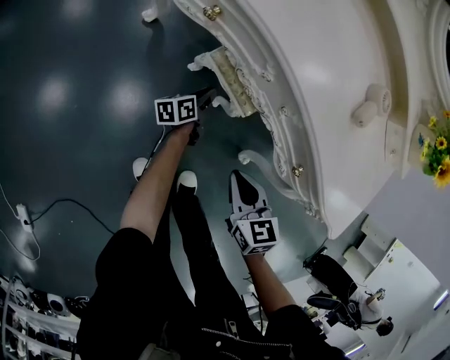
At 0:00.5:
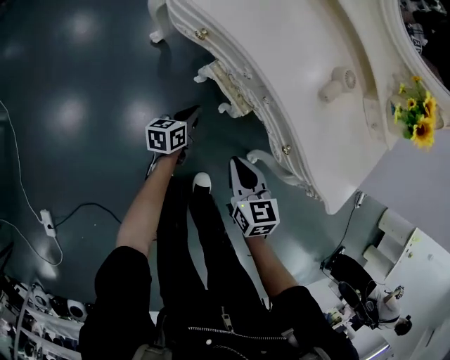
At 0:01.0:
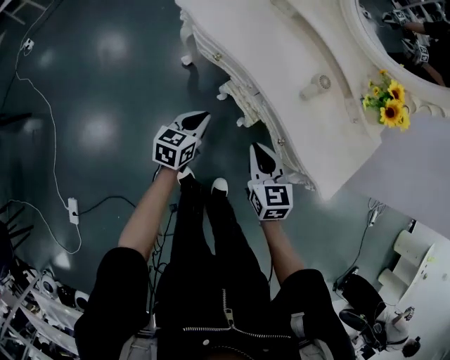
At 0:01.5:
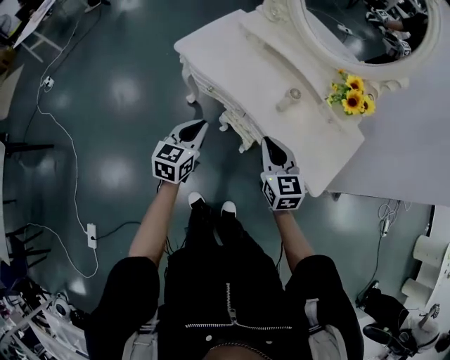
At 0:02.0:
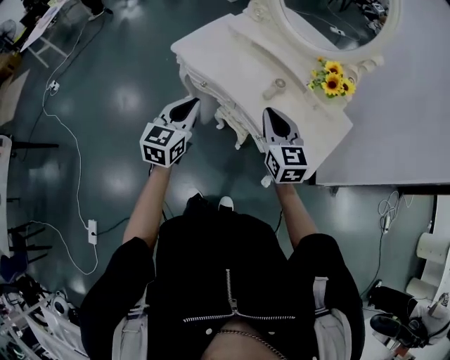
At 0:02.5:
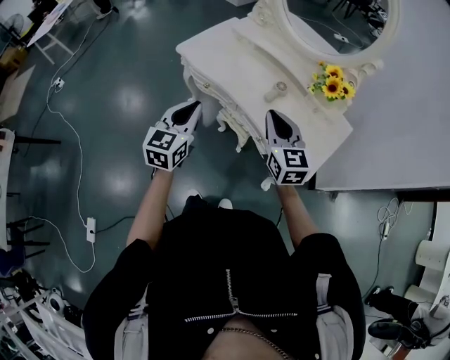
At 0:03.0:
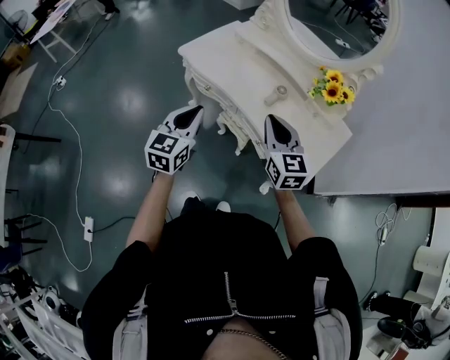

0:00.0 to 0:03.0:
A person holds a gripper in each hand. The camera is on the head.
0:00.0 to 0:01.5: The two grippers go roughly 50 cm upward. The left gripper rolls clockwise, seen from behind, by roughly 60 degrees; the right gripper turns by some 30 degrees.
0:01.5 to 0:03.0: The right gripper is displaced upward and to the right by some 10 cm. Meanwhile the left gripper goes approximately 15 cm upward and backward.

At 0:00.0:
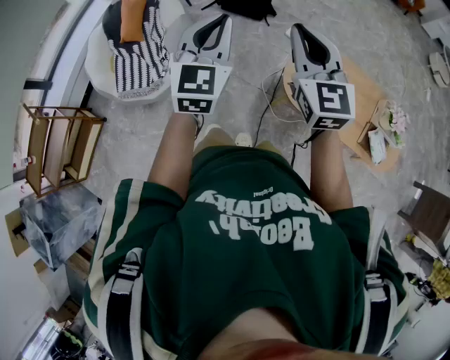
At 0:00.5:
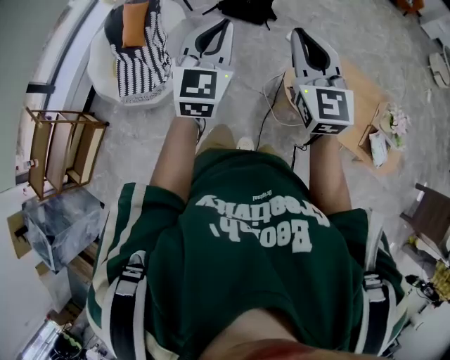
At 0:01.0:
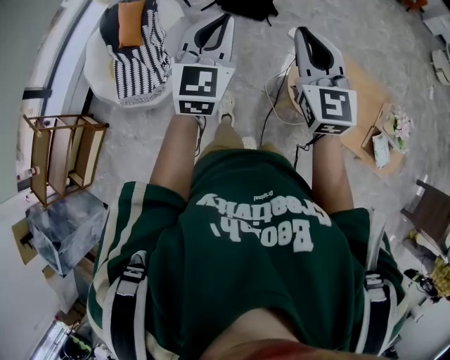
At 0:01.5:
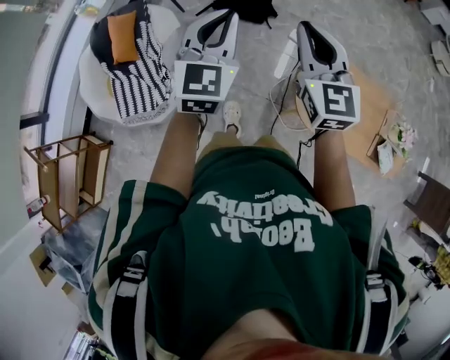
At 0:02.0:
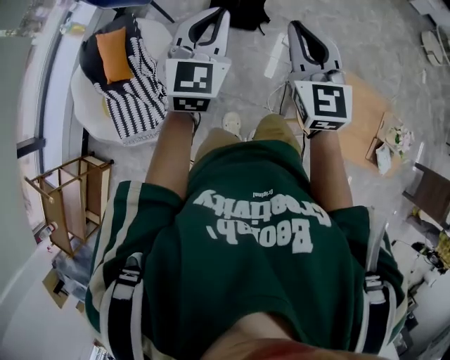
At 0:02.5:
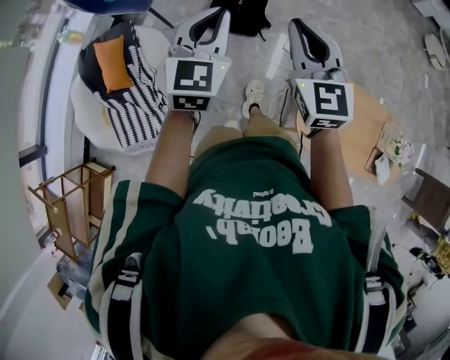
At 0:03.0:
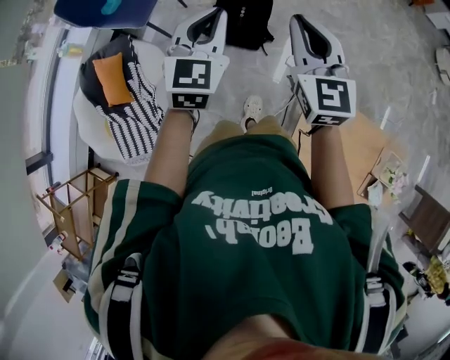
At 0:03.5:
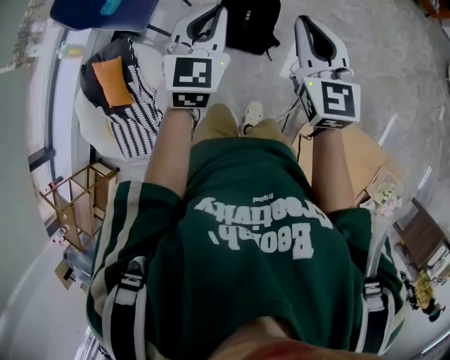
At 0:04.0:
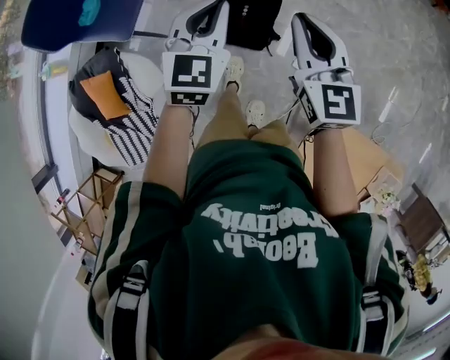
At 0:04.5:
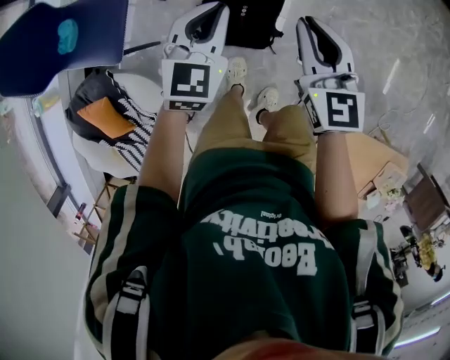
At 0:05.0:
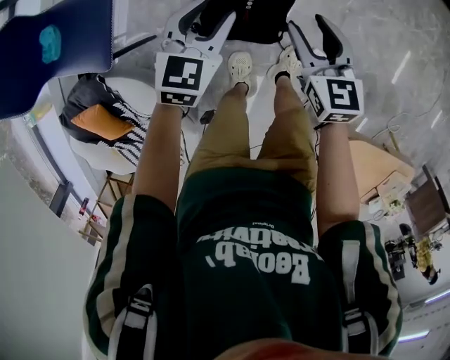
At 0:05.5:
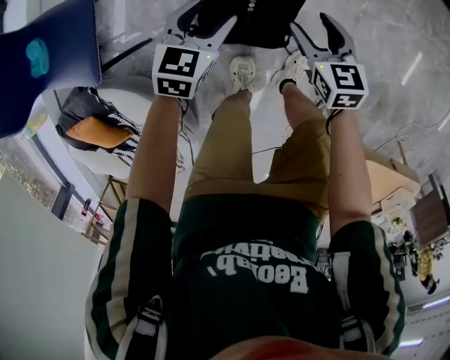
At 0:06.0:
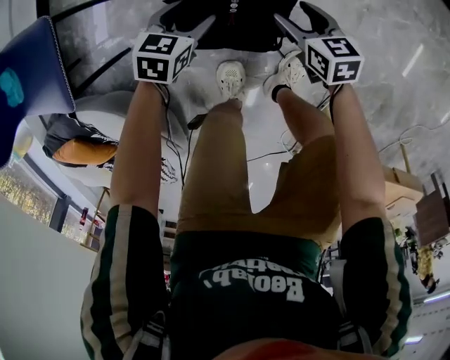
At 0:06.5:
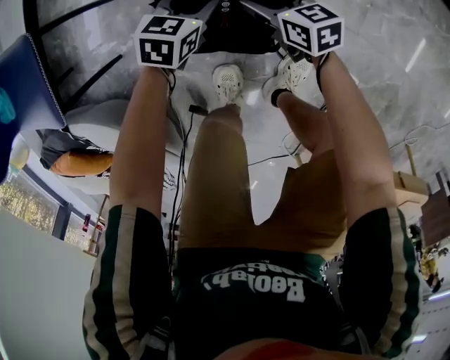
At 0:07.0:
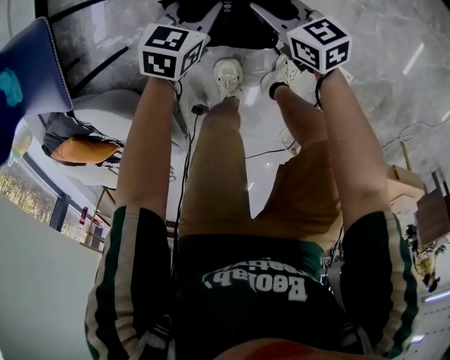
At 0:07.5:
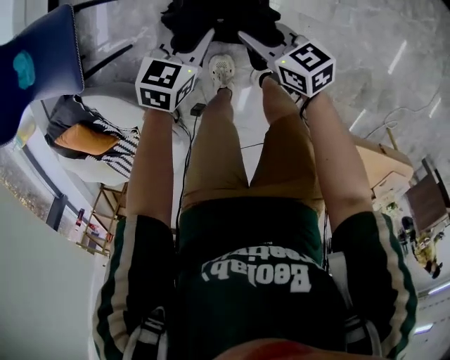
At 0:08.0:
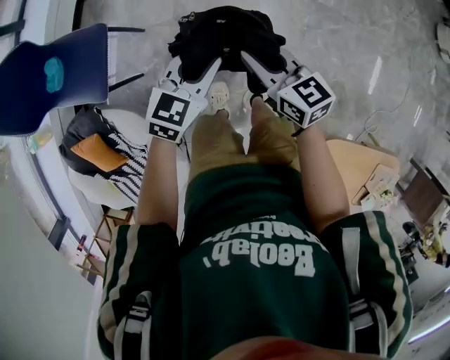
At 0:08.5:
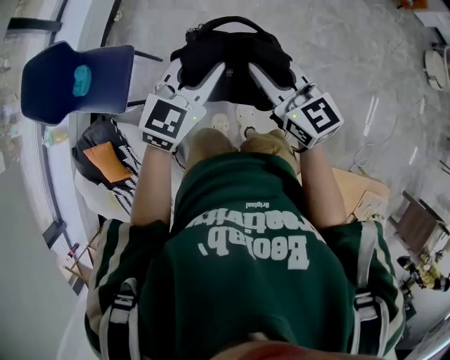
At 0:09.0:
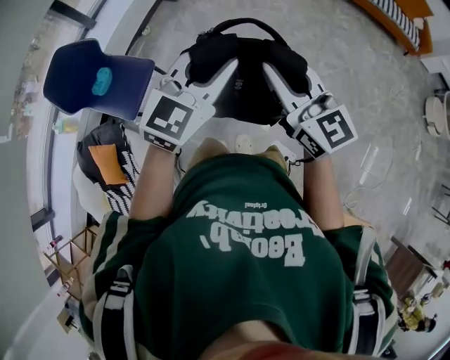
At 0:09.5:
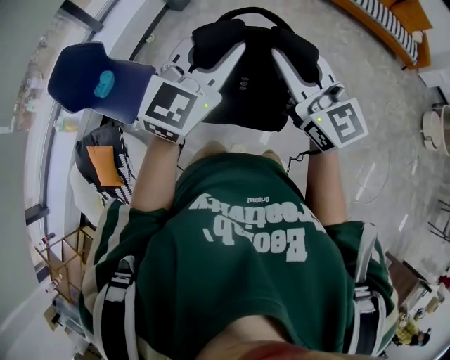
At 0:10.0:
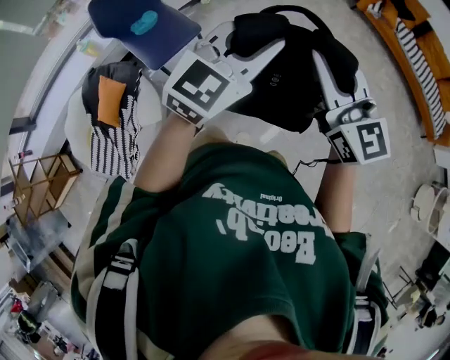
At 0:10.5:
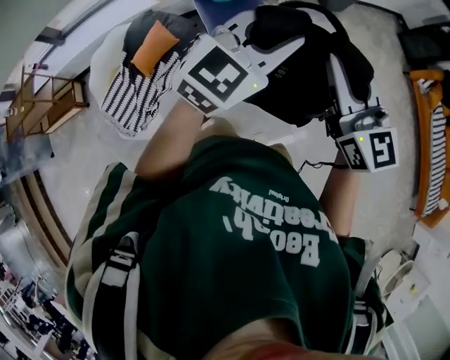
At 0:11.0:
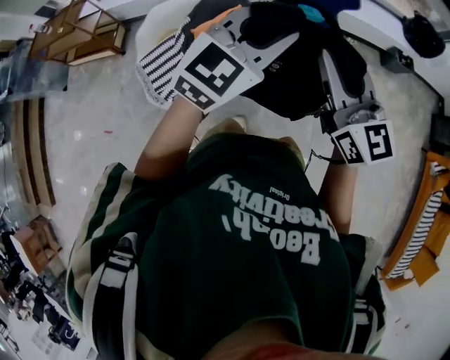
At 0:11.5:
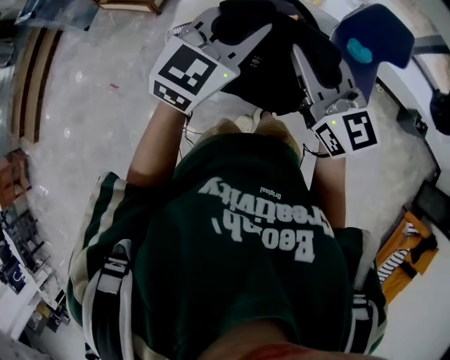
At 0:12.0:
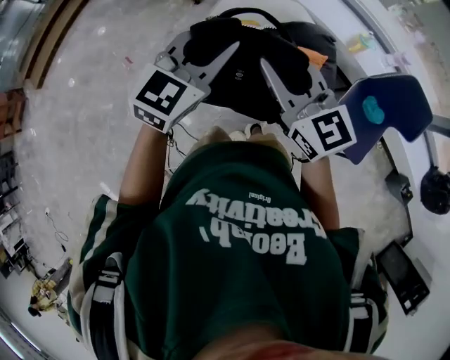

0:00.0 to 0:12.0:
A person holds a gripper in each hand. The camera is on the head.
0:00.0 to 0:02.0: The pair of grippers is taken forward, approximately 40 cm.
0:02.0 to 0:04.0: The two grippers travel together, forward, approximately 60 cm.
0:04.0 to 0:06.0: The grippers both shift downward and forward by roughly 80 cm. The right gripper changes its angle by some 40 degrees, and opens its fingers, while the left gripper points its fingers approximately 30 degrees further downward, and opens.
0:06.0 to 0:08.0: Both grippers travel together upward, about 50 cm. The left gripper swivels some 30 degrees, and closes. The right gripper swivels about 20 degrees, and closes its fingers.
0:08.0 to 0:10.0: Both grippers travel together upward, roughly 40 cm. The right gripper swivels roughly 50 degrees. The left gripper changes its angle by some 40 degrees.
0:10.0 to 0:12.0: The two grippers travel together, some 90 cm. The left gripper changes its angle by approximately 90 degrees. The right gripper turns by some 90 degrees.

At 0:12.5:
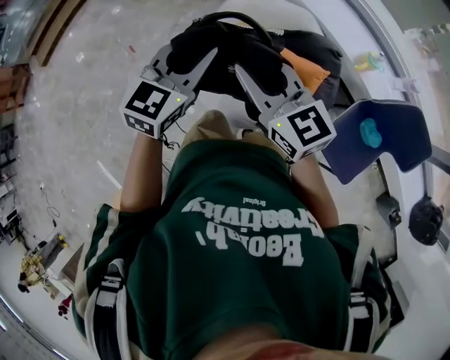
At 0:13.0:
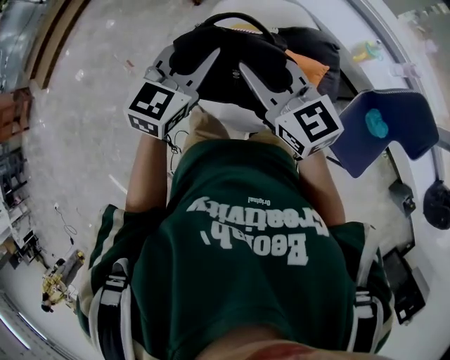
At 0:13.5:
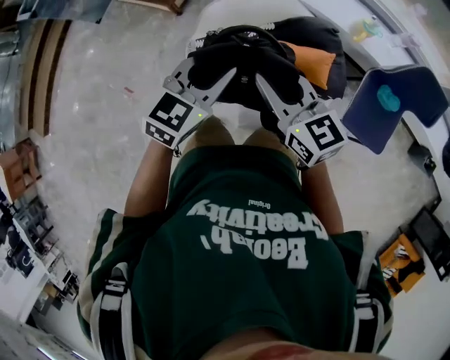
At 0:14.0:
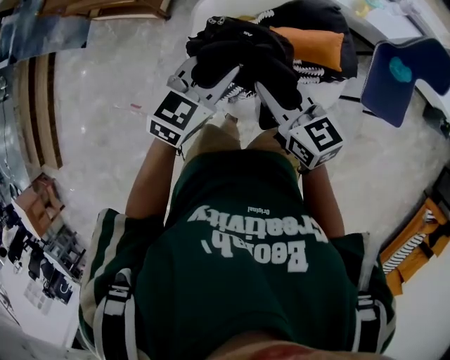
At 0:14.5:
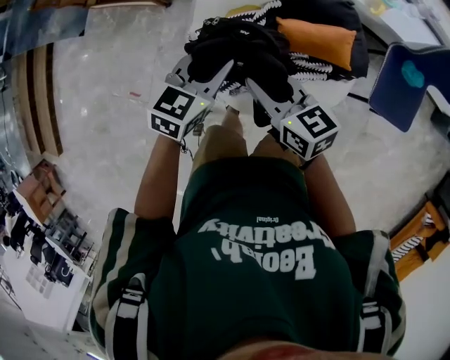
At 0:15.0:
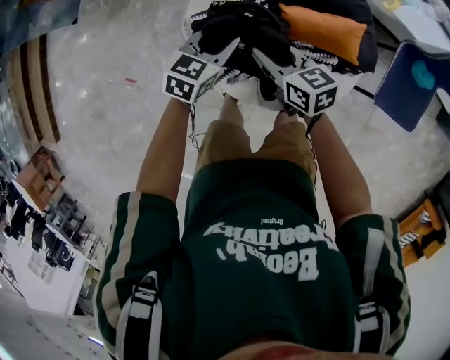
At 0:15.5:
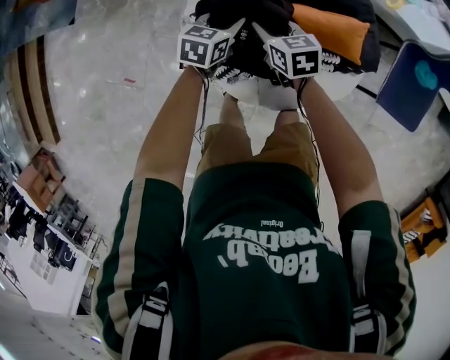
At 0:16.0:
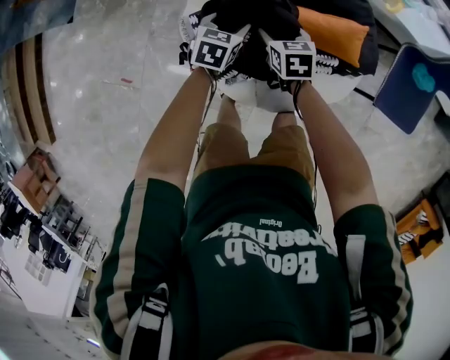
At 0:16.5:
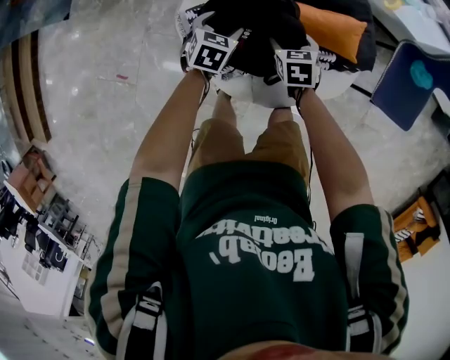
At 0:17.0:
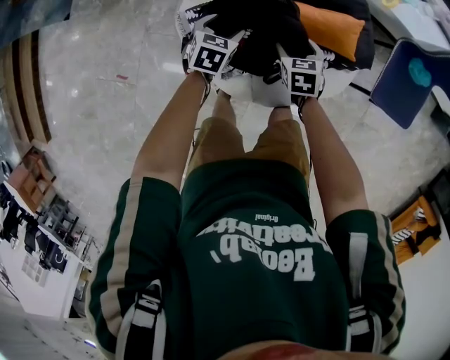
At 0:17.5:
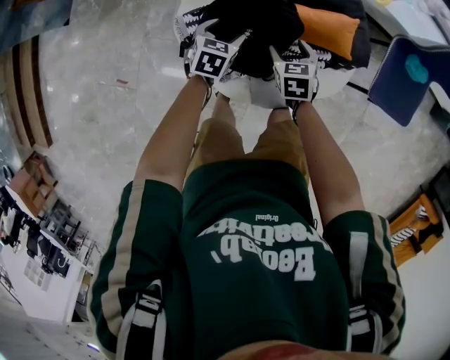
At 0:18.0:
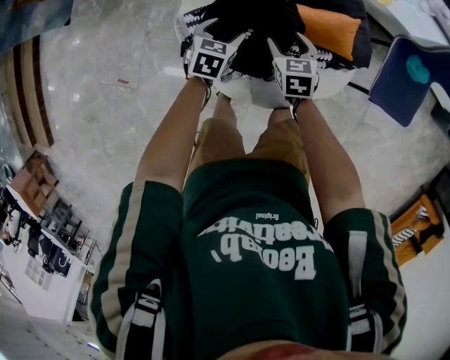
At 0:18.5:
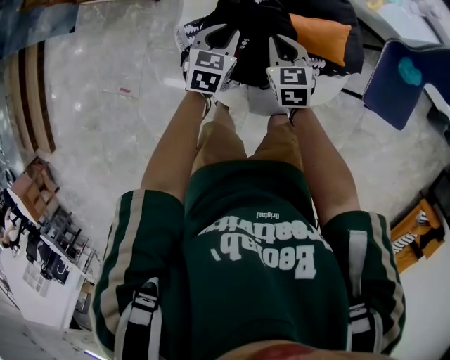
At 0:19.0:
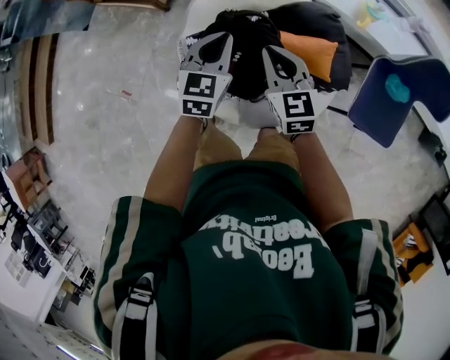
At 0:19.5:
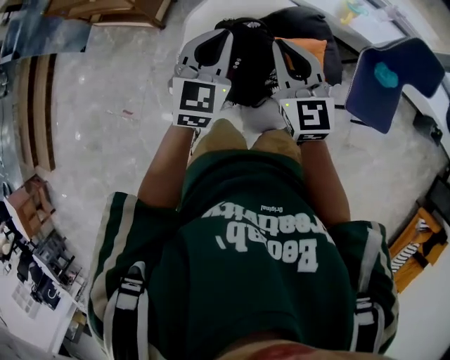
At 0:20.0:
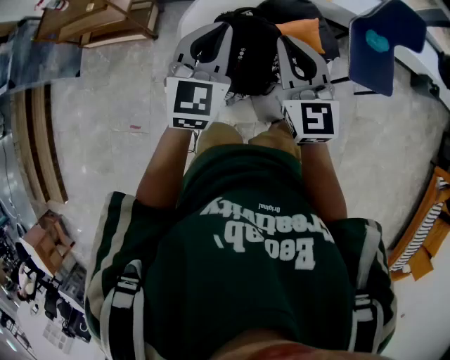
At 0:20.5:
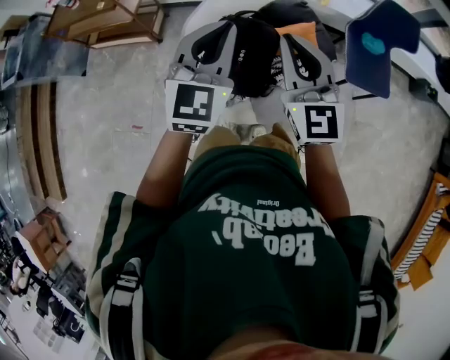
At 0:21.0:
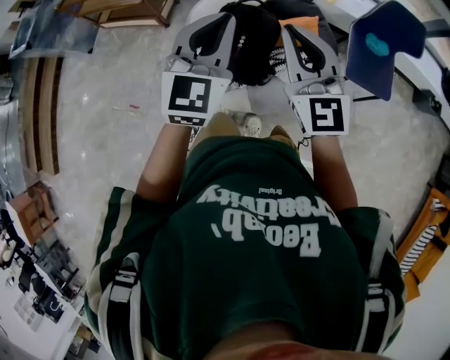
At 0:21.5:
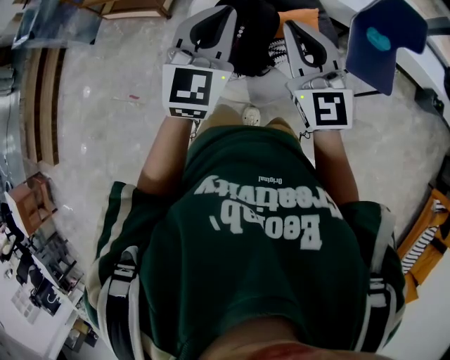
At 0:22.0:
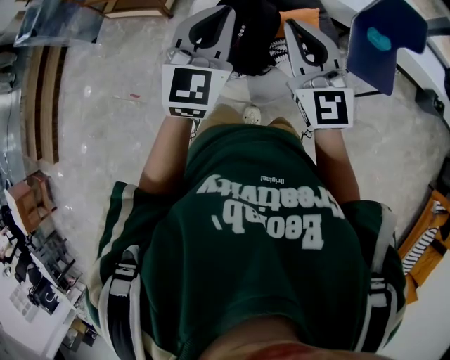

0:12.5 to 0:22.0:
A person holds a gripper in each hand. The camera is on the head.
0:12.5 to 0:14.5: Both grippers travel together downward, about 25 cm. The left gripper turns by about 40 degrees, while the right gripper swivels some 40 degrees.
0:14.5 to 0:16.5: Both grippers travel together downward, approximately 25 cm. The left gripper turns by roughly 20 degrees, and opens, while the right gripper tips its fingers downward by roughly 40 degrees, and opens up.
0:16.5 to 0:18.0: The grippers move only a little.
0:18.0 to 0:20.0: The right gripper moves upward and backward, some 50 cm, tips its fingers upward by some 40 degrees, and closes up; the left gripper goes approximately 40 cm upward, tips its fingers upward by roughly 40 degrees, and closes its fingers.
0:20.0 to 0:22.0: The grippers both shift backward and to the right by about 25 cm.

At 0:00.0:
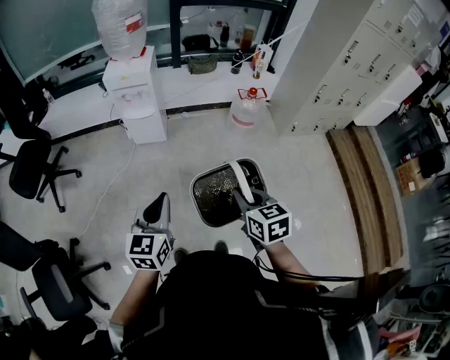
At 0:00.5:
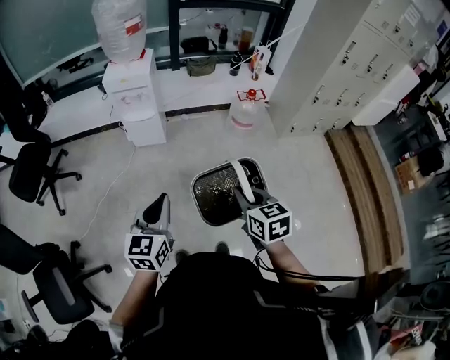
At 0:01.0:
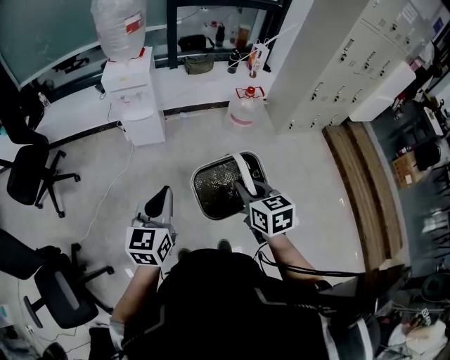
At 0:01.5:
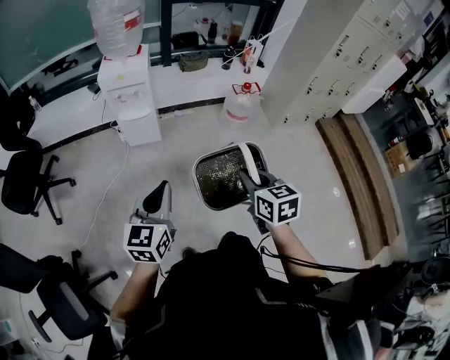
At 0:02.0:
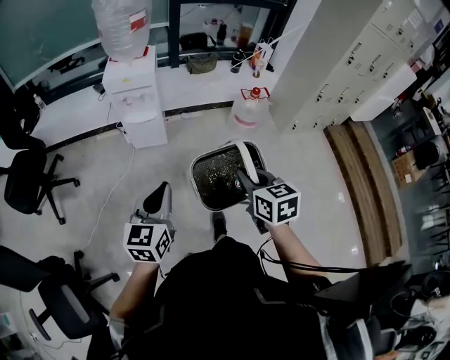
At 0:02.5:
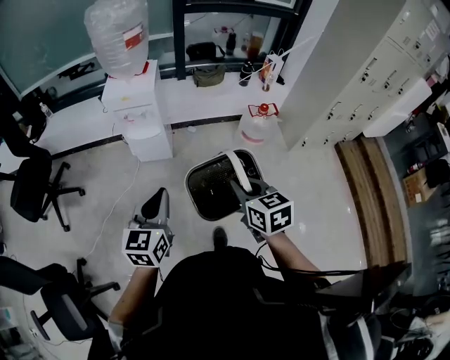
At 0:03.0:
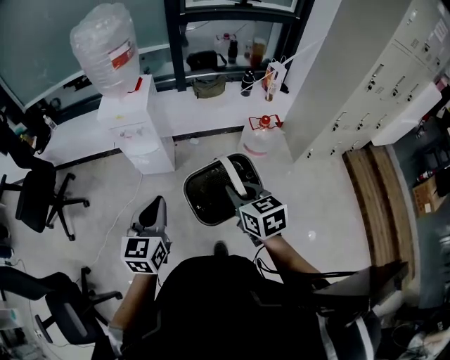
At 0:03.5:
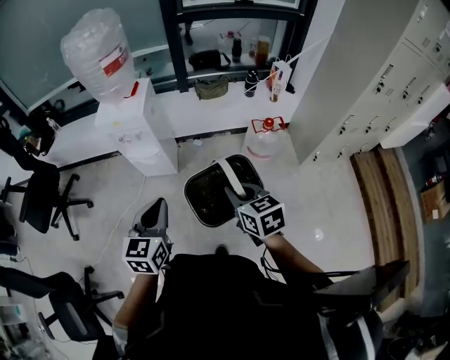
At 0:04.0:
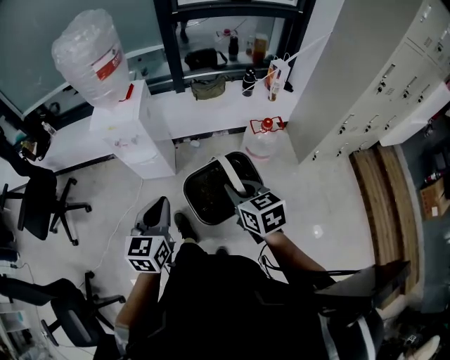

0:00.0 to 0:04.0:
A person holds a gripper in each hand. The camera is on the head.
0:00.0 to 0:02.0: Both grippers travel together forward and to the left, some 10 cm.
0:02.0 to 0:04.0: Both grippers travel together forward and to the right, roughly 30 cm.
